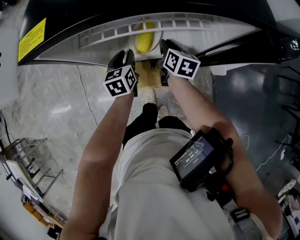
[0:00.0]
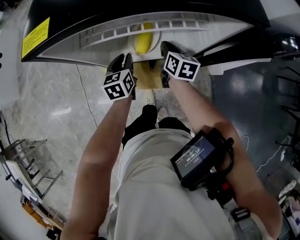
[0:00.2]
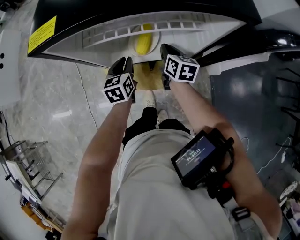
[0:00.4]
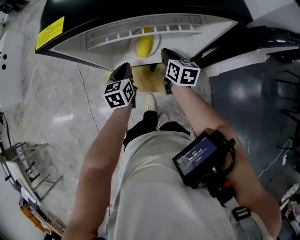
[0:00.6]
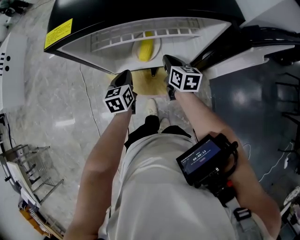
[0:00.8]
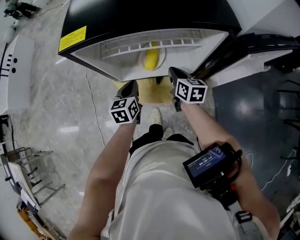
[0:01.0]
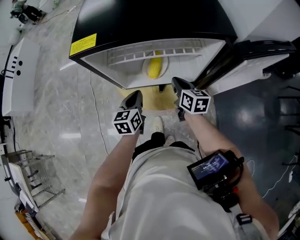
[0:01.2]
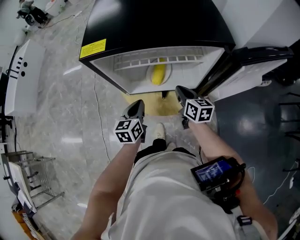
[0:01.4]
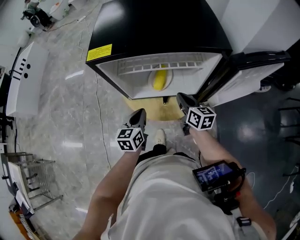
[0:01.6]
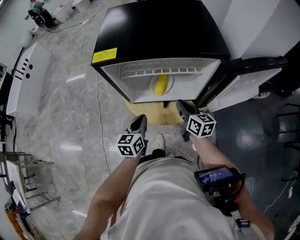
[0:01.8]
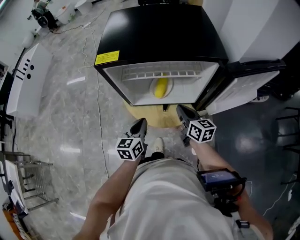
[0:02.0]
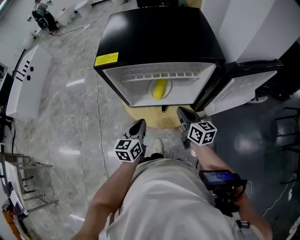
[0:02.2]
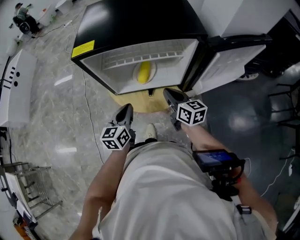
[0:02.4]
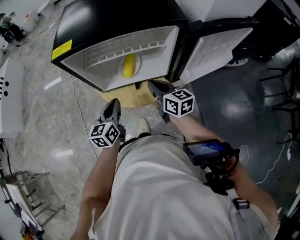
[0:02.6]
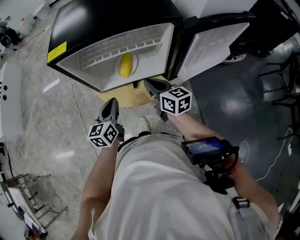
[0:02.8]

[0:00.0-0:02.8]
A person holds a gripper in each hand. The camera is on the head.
0:00.0 to 0:01.4: The left gripper goes some 15 cm backward and upward, and closes. The right gripper travels upward and backward by roughly 15 cm.
0:01.4 to 0:02.8: The right gripper shifts approximately 10 cm upward and backward. The left gripper heads upward, covering roughly 5 cm.

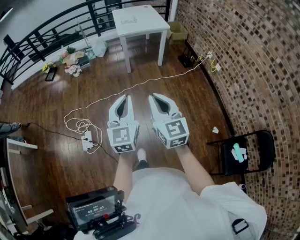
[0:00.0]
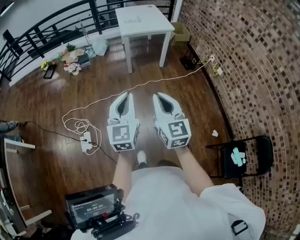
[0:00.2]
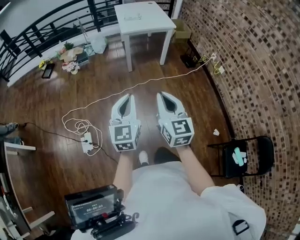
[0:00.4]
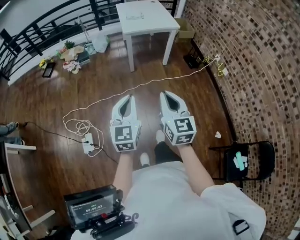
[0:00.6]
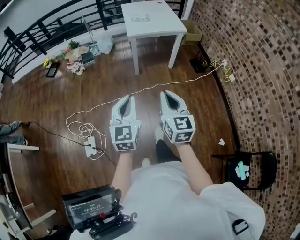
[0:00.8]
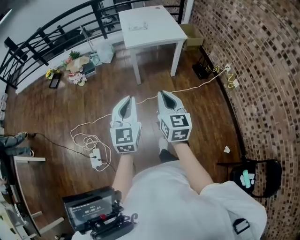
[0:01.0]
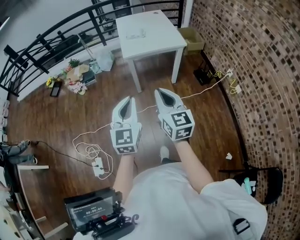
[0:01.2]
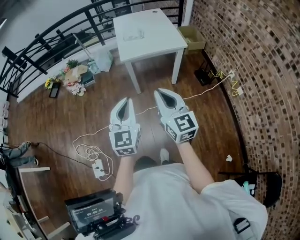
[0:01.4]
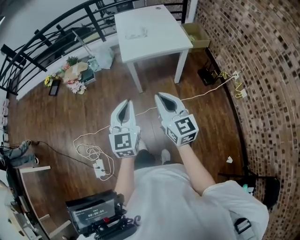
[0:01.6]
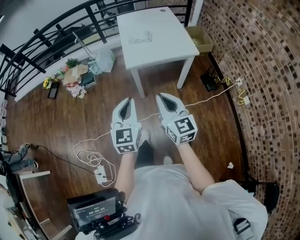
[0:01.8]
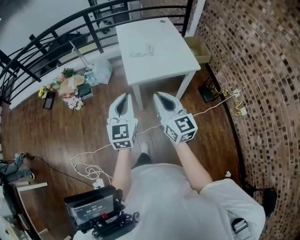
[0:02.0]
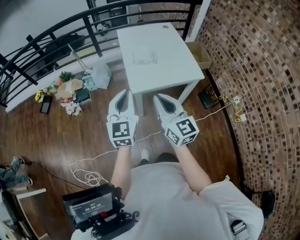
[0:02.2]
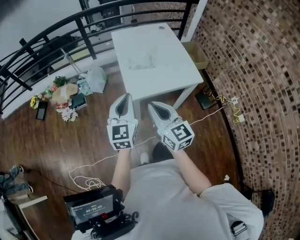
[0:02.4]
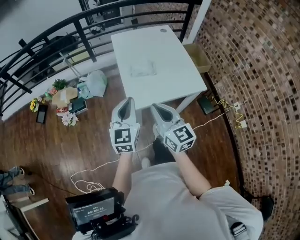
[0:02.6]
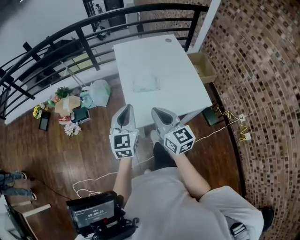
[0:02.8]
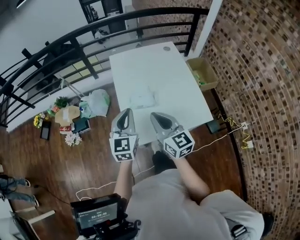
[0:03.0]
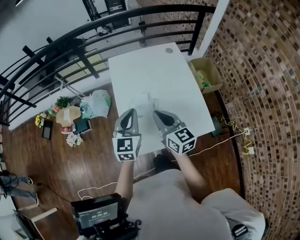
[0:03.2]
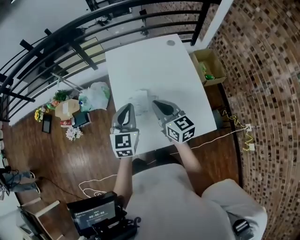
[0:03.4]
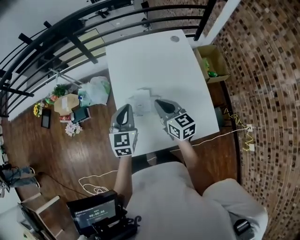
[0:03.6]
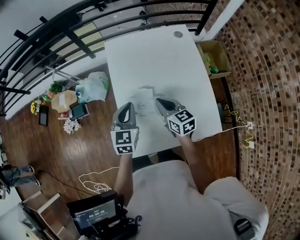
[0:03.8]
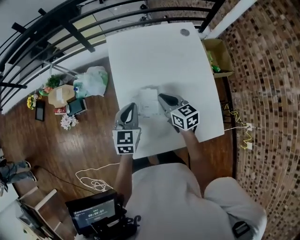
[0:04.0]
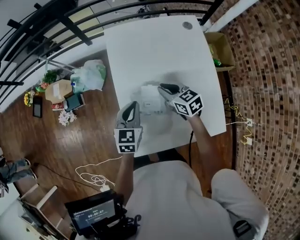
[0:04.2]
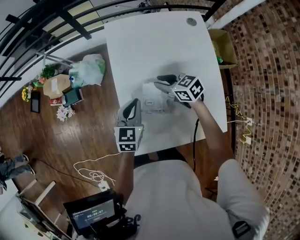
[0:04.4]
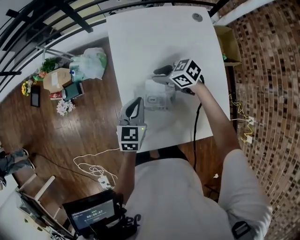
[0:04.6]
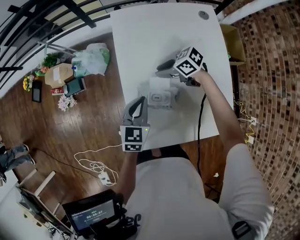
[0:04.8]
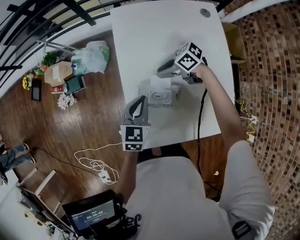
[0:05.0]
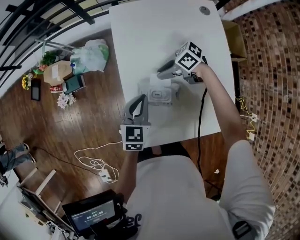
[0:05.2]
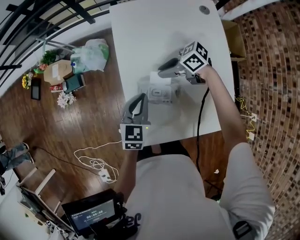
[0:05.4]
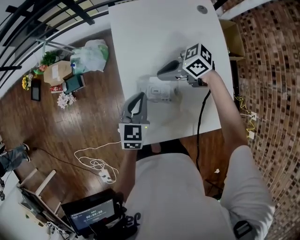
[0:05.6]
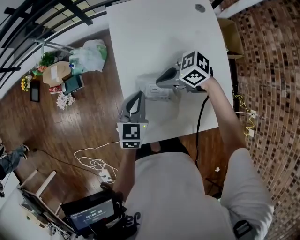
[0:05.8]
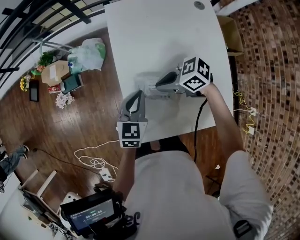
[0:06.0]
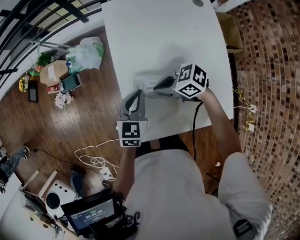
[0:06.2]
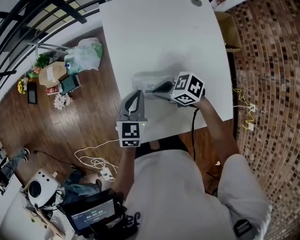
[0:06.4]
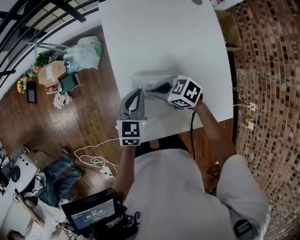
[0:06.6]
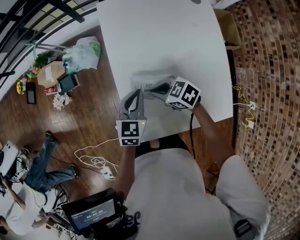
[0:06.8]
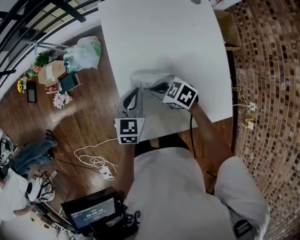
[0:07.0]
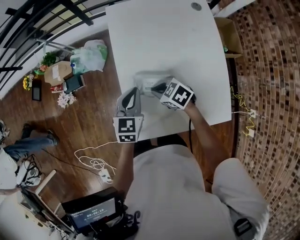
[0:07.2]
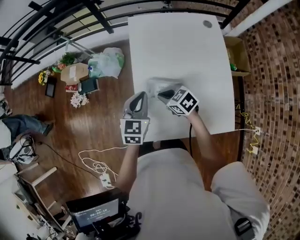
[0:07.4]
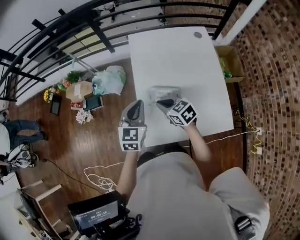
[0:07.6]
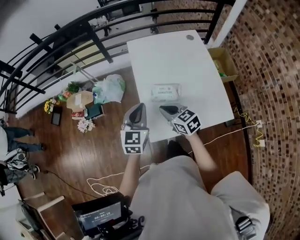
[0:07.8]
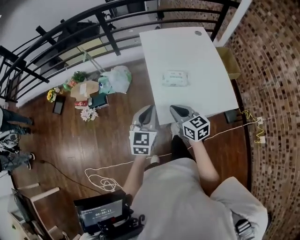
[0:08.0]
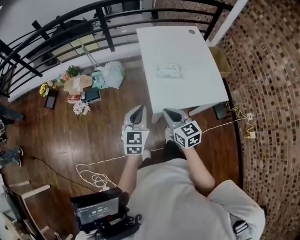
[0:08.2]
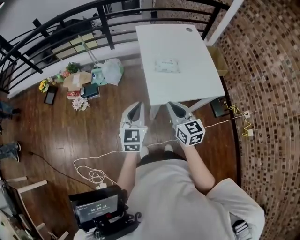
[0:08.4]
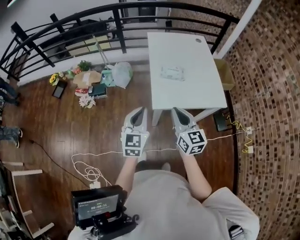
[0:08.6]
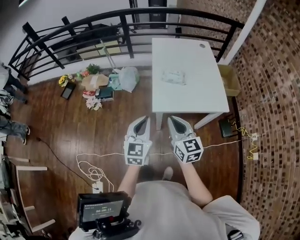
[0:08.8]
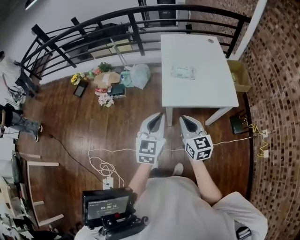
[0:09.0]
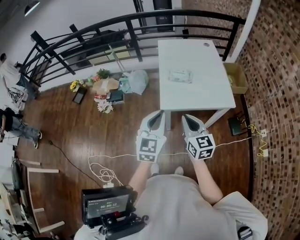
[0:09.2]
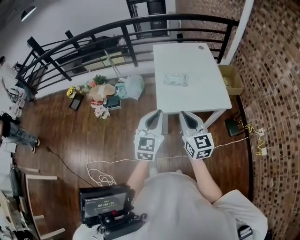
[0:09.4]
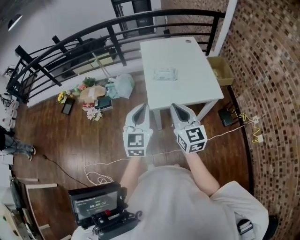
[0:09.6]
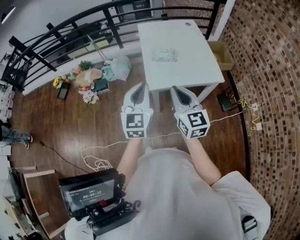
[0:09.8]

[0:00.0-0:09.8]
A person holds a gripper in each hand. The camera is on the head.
0:00.0 to 0:01.4: The pair of grippers is taken forward, some 50 cm.
0:01.4 to 0:02.8: Both grippers are carried forward, some 50 cm.
0:02.8 to 0:04.2: Both grippers travel together forward and downward, roughly 35 cm. The right gripper changes its angle by roughly 40 degrees; the left gripper changes its angle by about 20 degrees.
0:04.2 to 0:05.6: The right gripper ends up approximately 5 cm from where it was, and swivels approximately 50 degrees.
0:05.6 to 0:07.0: The right gripper changes place by some 10 cm, and changes its angle by approximately 20 degrees.
0:07.0 to 0:08.4: The left gripper changes place by some 40 cm, and changes its angle by about 20 degrees, while the right gripper moves some 40 cm, and tips its fingers upward by approximately 30 degrees.
0:08.4 to 0:09.8: The right gripper shifts about 15 cm upward, backward and to the right; the left gripper travels upward, to the right and backward by approximately 15 cm.

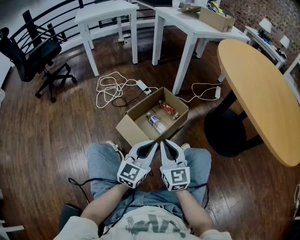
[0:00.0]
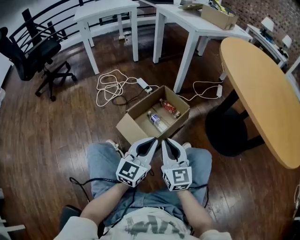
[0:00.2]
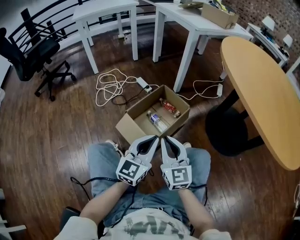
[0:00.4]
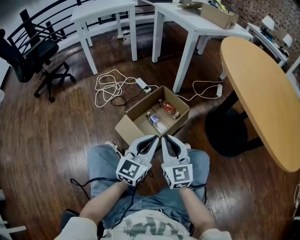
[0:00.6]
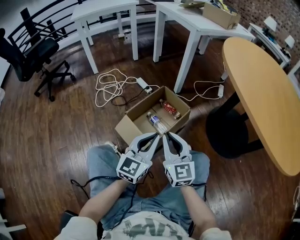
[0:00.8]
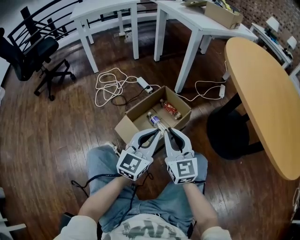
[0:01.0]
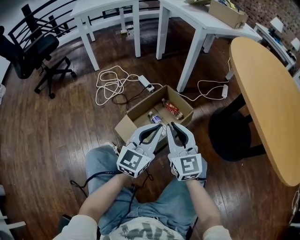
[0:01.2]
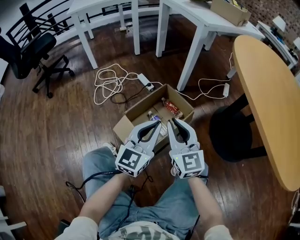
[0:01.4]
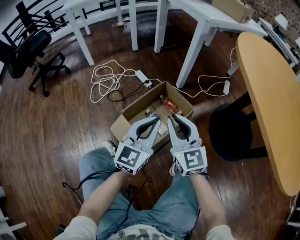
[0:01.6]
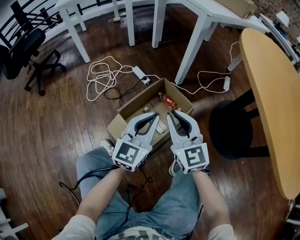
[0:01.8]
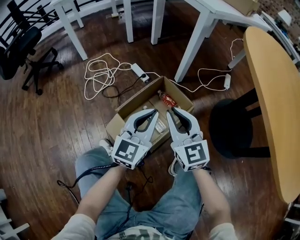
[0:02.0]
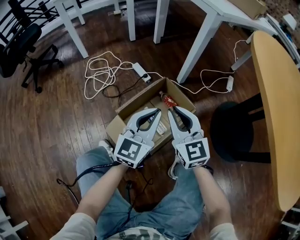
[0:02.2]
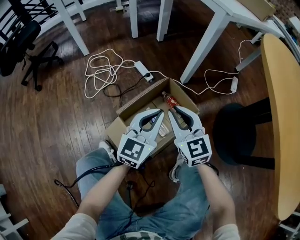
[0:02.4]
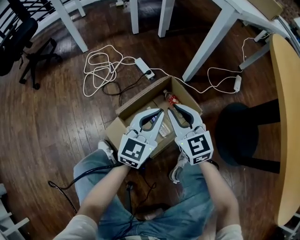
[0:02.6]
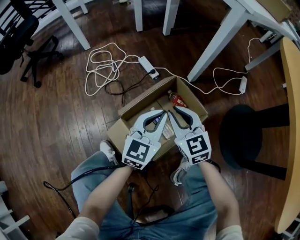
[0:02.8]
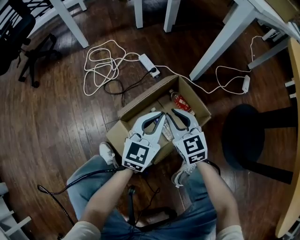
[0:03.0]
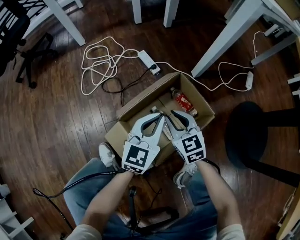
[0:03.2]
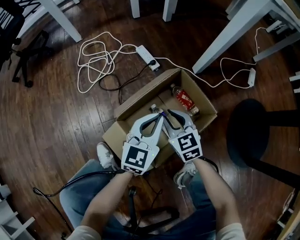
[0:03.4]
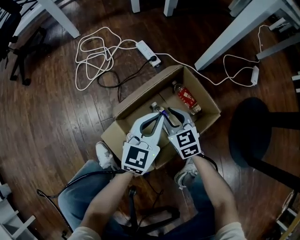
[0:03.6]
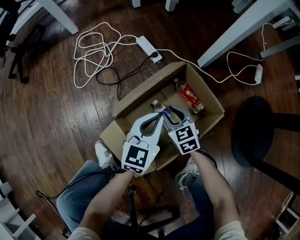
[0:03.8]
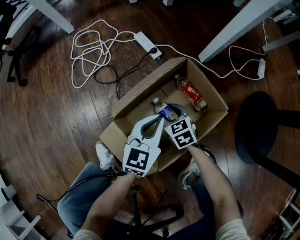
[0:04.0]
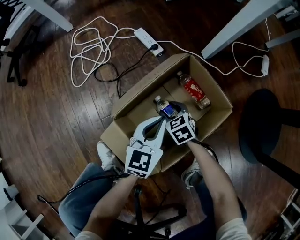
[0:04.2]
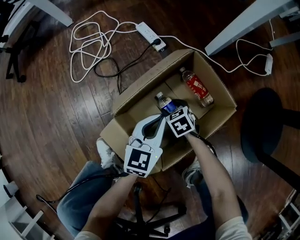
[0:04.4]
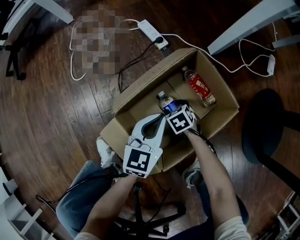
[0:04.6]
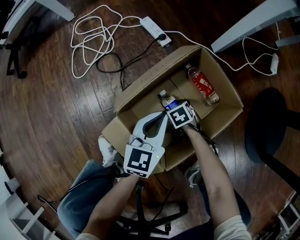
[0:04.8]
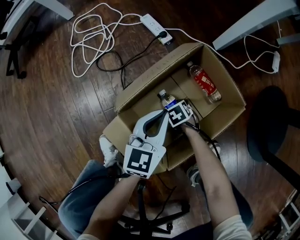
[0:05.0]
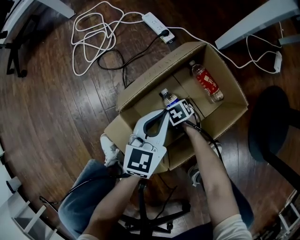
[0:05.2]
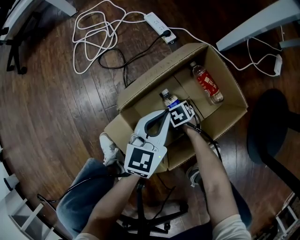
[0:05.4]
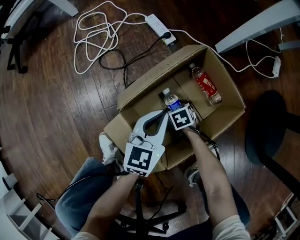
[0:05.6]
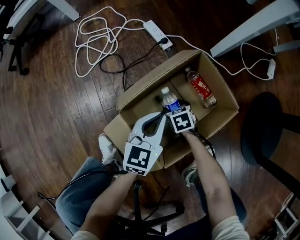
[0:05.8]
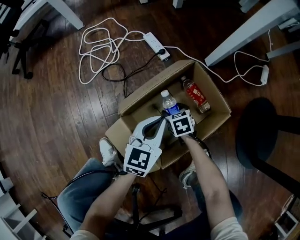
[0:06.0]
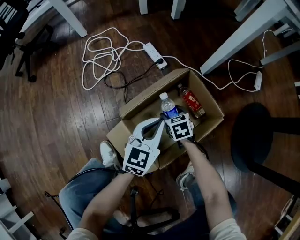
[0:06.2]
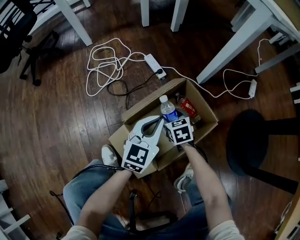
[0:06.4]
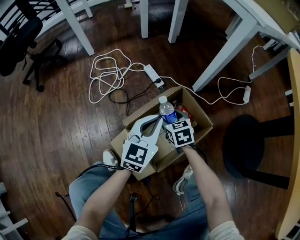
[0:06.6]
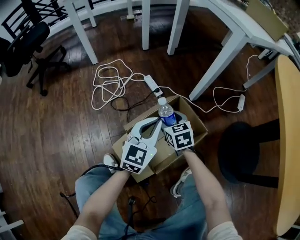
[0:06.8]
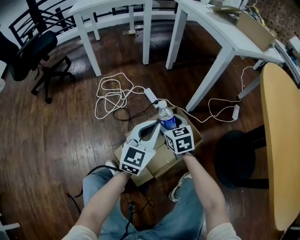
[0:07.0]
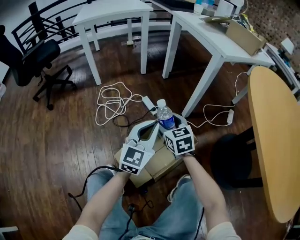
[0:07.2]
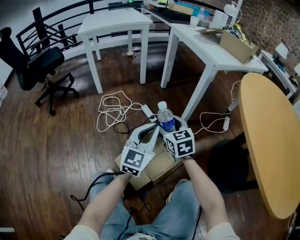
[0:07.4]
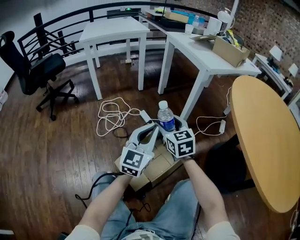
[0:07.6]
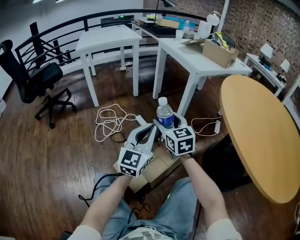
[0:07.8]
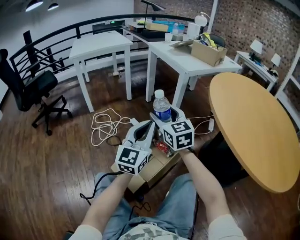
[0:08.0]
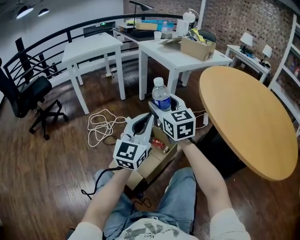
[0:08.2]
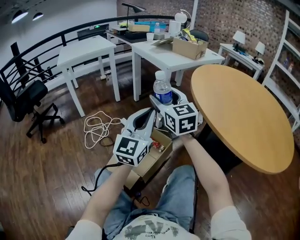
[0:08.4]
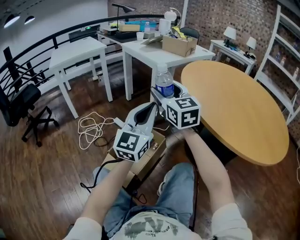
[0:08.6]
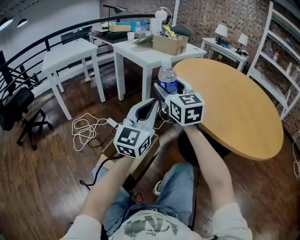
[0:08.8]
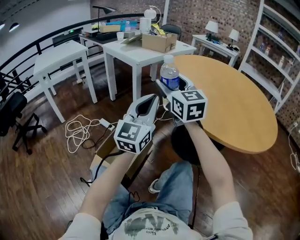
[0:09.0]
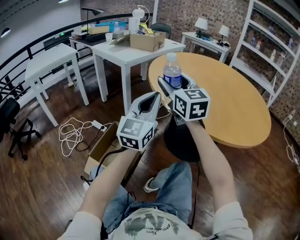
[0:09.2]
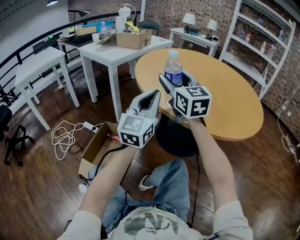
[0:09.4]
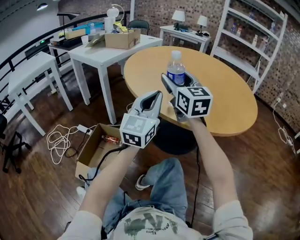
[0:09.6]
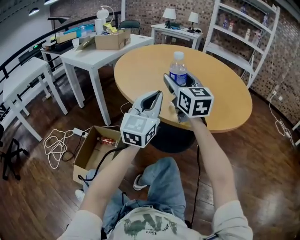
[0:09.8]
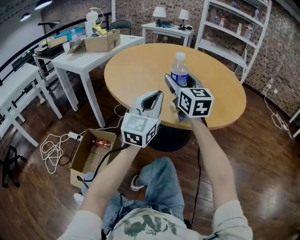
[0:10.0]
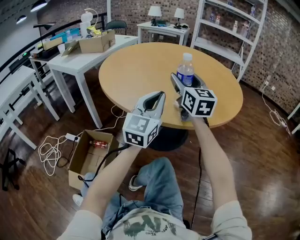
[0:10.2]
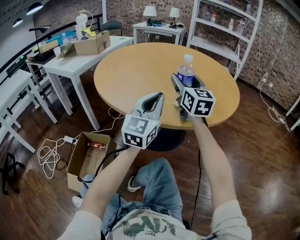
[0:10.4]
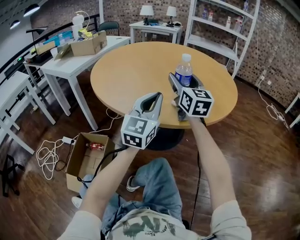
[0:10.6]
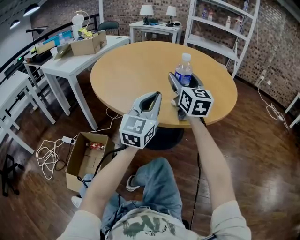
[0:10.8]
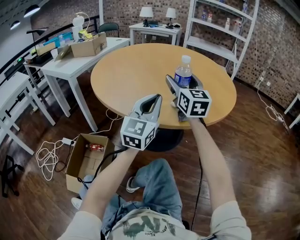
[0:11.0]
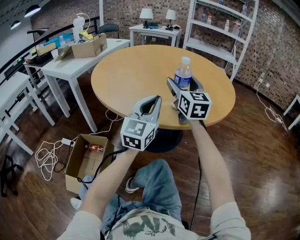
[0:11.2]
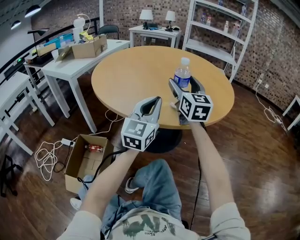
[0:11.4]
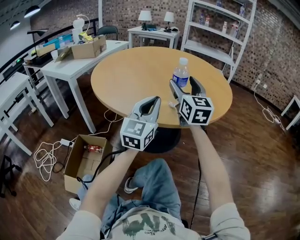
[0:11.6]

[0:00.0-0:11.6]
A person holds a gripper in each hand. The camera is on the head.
0:00.0 to 0:01.4: Both grippers travel together forward, roughly 15 cm.
0:01.4 to 0:02.8: Both grippers move forward and downward, roughly 25 cm. The right gripper turns by approximately 20 degrees.
0:02.8 to 0:04.4: The right gripper shifts about 35 cm downward, points its fingers about 40 degrees further downward, and opens; the left gripper goes about 20 cm downward.
0:04.4 to 0:05.8: The right gripper travels downward and back again, approximately 10 cm each way.
0:05.8 to 0:07.2: Both grippers move upward, approximately 40 cm. The left gripper changes its angle by approximately 30 degrees; the right gripper tips its fingers upward by some 40 degrees.
0:07.2 to 0:08.8: The right gripper heads upward and to the right, covering roughly 40 cm, and angles its fingers upward, by about 30 degrees. Meanwhile the left gripper moves upward, to the right and backward, roughly 35 cm, and changes its angle by about 30 degrees.
0:08.8 to 0:10.2: The left gripper moves about 30 cm, and swivels some 30 degrees. The right gripper ends up roughly 40 cm from where it was, and rotates some 30 degrees.
0:10.2 to 0:11.6: The right gripper heads to the right, covering some 5 cm.
